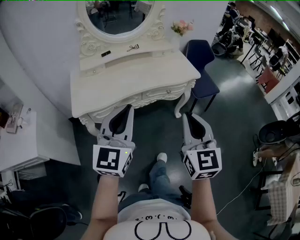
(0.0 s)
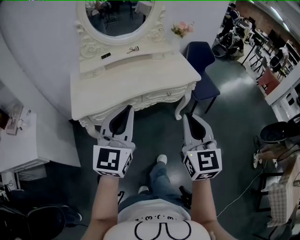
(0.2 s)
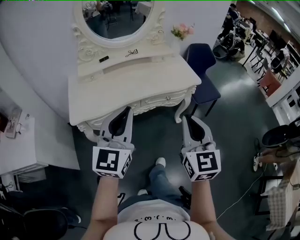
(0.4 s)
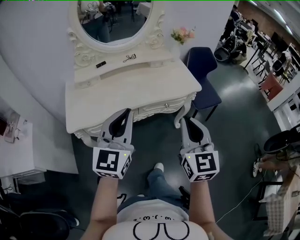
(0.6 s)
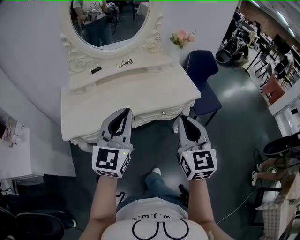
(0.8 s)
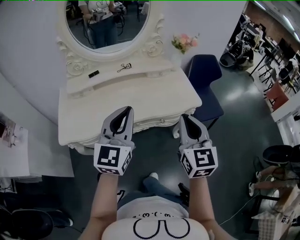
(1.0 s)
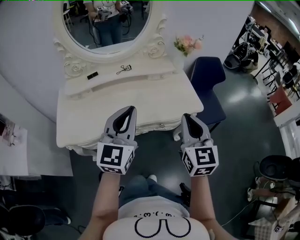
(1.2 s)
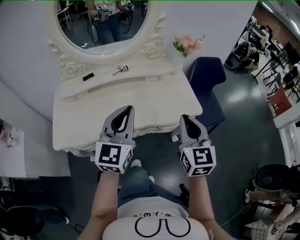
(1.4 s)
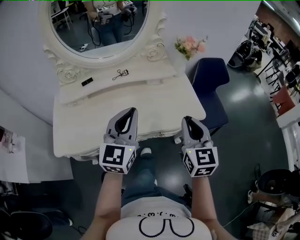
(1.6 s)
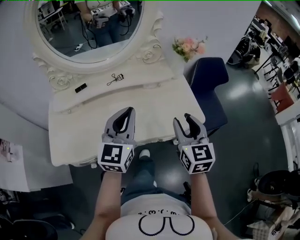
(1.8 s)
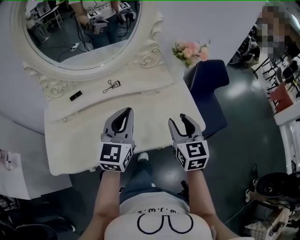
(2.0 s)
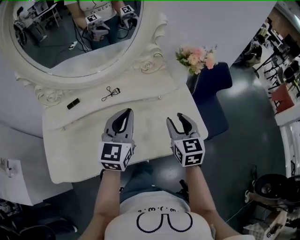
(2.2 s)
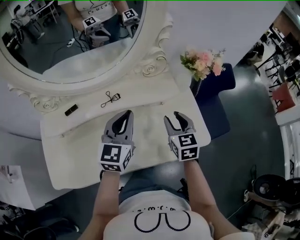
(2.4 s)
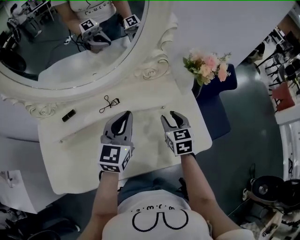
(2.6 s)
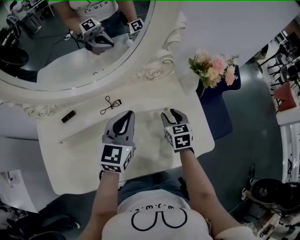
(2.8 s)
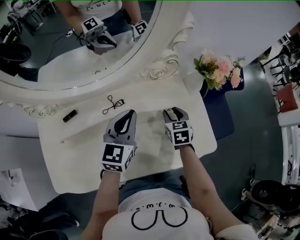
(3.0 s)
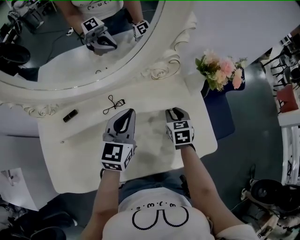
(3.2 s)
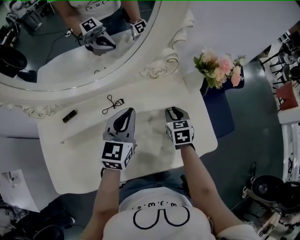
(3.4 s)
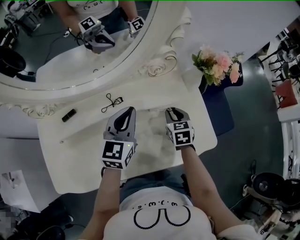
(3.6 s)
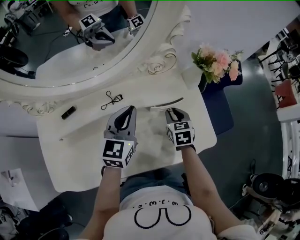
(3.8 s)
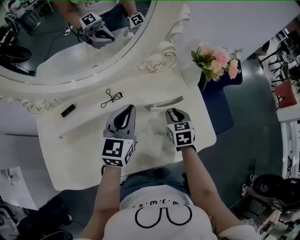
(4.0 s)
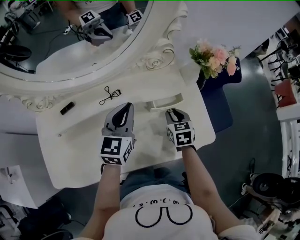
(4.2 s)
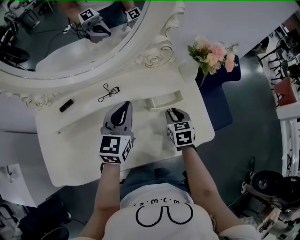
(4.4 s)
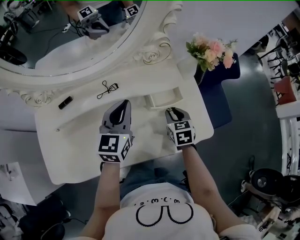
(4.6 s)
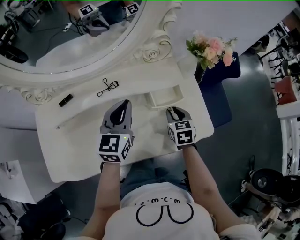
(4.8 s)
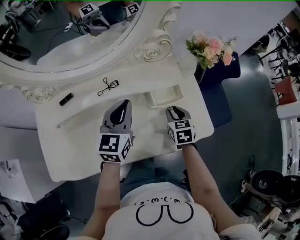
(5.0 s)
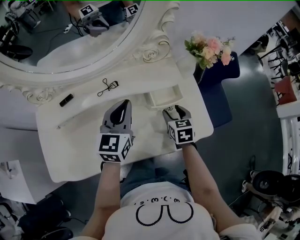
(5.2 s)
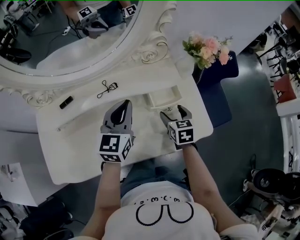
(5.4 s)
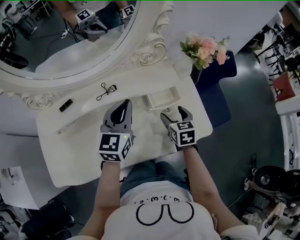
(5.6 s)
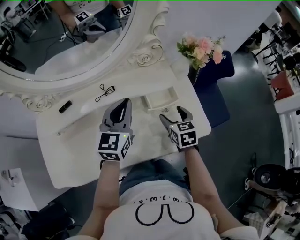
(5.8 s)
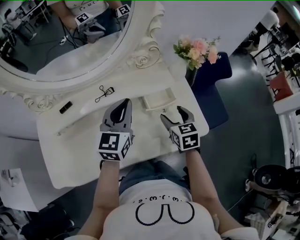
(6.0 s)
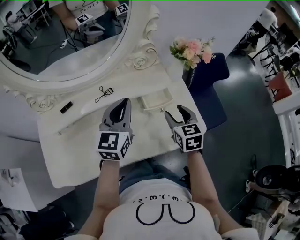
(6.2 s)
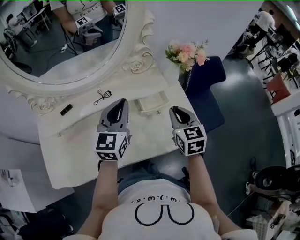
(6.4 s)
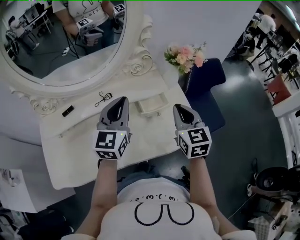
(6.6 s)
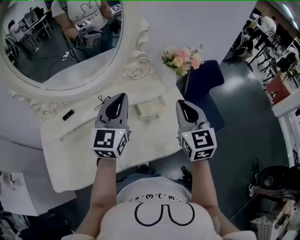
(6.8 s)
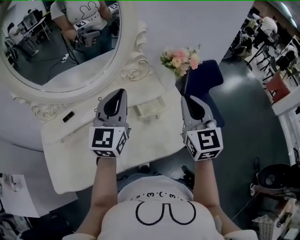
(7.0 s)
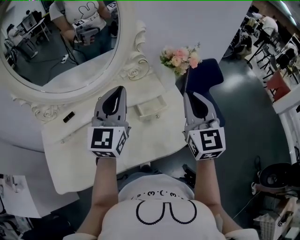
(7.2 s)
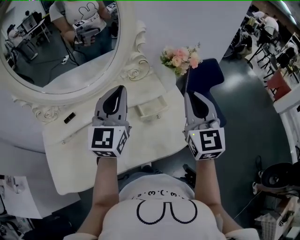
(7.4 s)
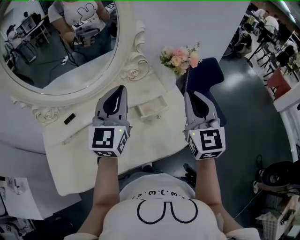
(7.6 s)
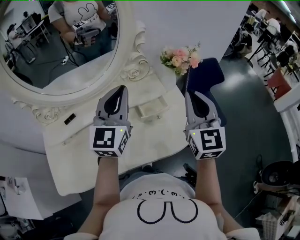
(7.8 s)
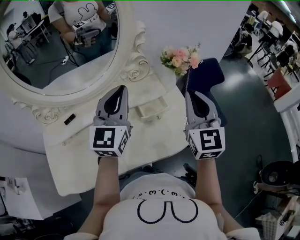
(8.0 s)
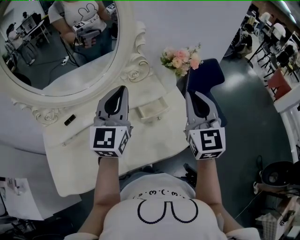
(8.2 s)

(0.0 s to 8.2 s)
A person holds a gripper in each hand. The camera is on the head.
0.0 s - 1.6 s: The two grippers go approximately 35 cm forward.
1.6 s - 3.2 s: The two grippers go about 35 cm forward and downward. The right gripper tilts its fingers roughly 30 degrees downward.
3.2 s - 5.0 s: The left gripper moves roughly 5 cm. Meanwhile the right gripper goes approximately 10 cm backward.
5.0 s - 6.6 s: The right gripper heads upward, covering roughly 20 cm, changes its angle by approximately 30 degrees, and opens, then closes once more. The left gripper is displaced upward by roughly 10 cm.
6.6 s - 8.2 s: The right gripper shifts some 10 cm upward, and swivels roughly 20 degrees. Meanwhile the left gripper travels upward by some 10 cm.

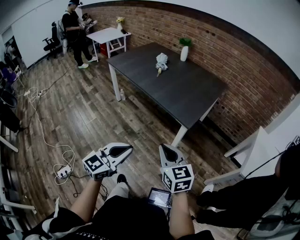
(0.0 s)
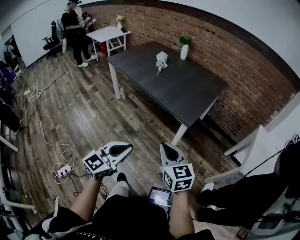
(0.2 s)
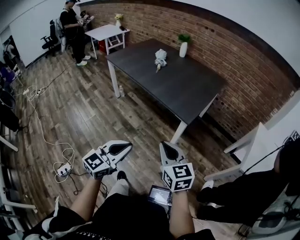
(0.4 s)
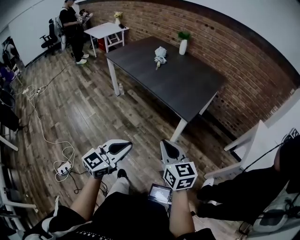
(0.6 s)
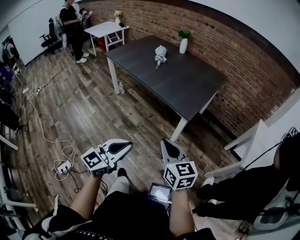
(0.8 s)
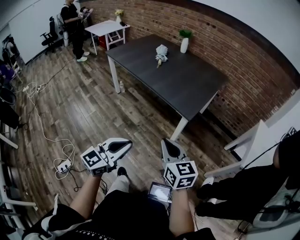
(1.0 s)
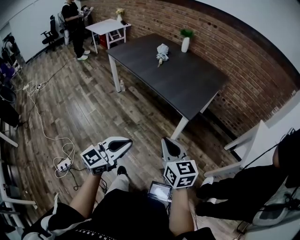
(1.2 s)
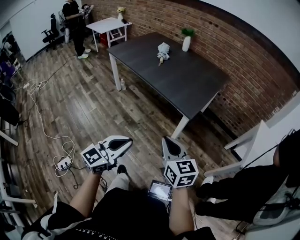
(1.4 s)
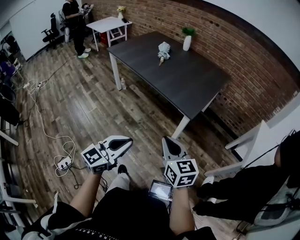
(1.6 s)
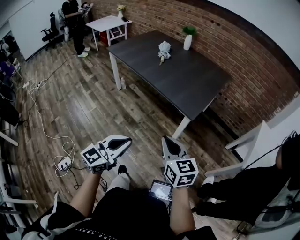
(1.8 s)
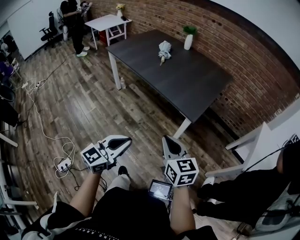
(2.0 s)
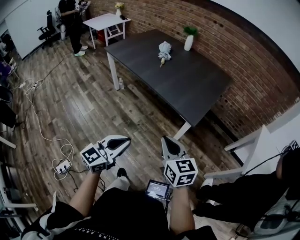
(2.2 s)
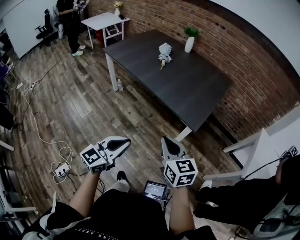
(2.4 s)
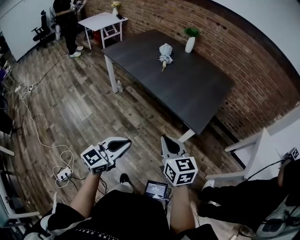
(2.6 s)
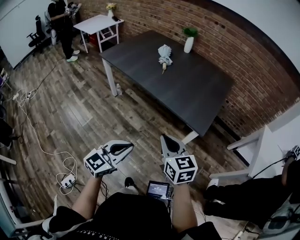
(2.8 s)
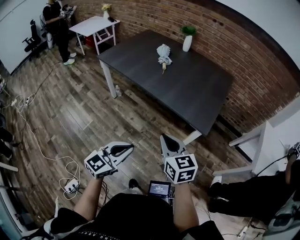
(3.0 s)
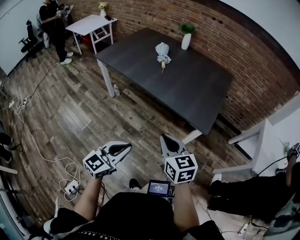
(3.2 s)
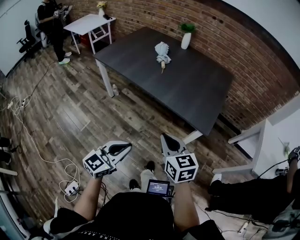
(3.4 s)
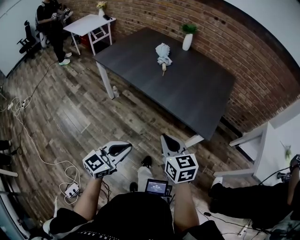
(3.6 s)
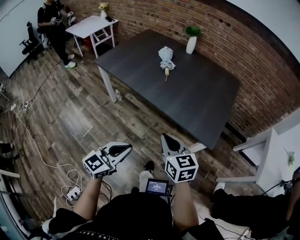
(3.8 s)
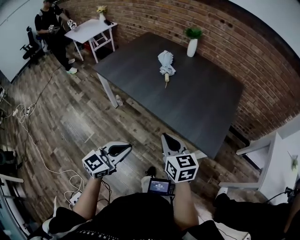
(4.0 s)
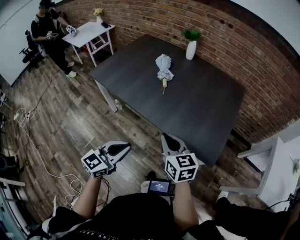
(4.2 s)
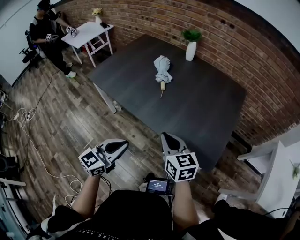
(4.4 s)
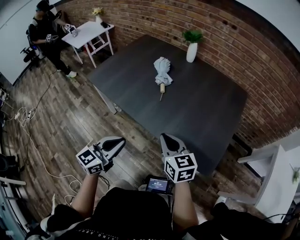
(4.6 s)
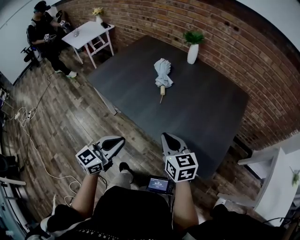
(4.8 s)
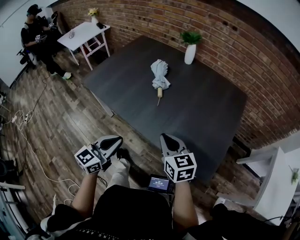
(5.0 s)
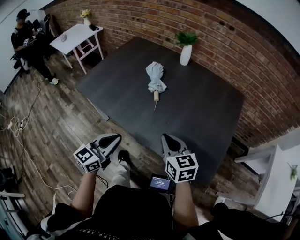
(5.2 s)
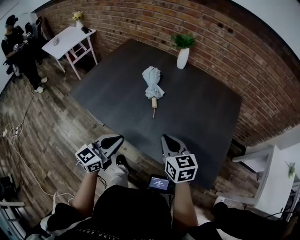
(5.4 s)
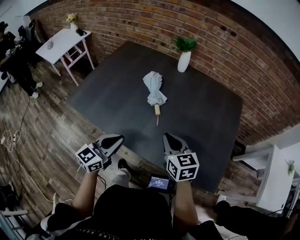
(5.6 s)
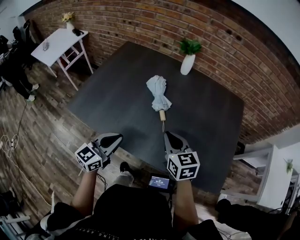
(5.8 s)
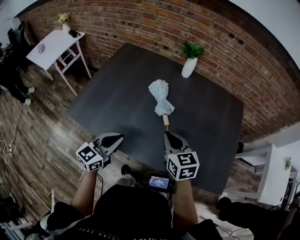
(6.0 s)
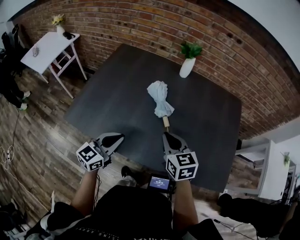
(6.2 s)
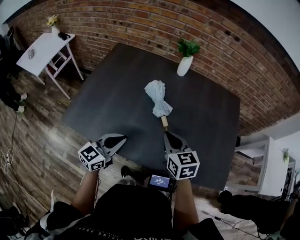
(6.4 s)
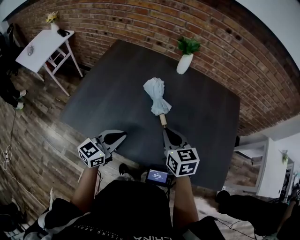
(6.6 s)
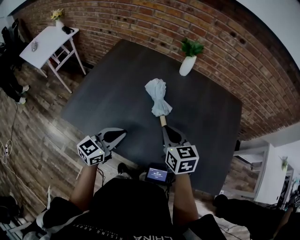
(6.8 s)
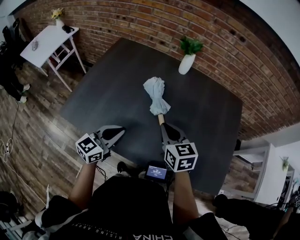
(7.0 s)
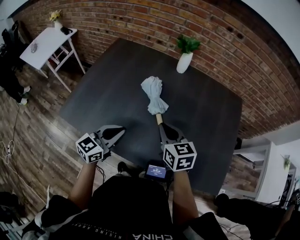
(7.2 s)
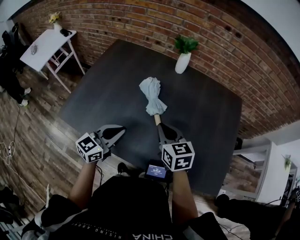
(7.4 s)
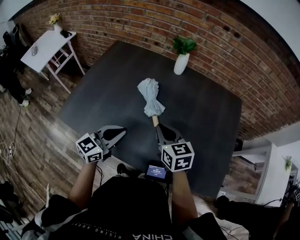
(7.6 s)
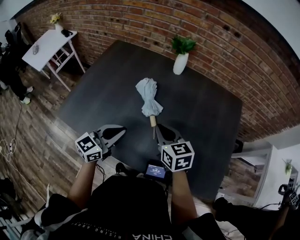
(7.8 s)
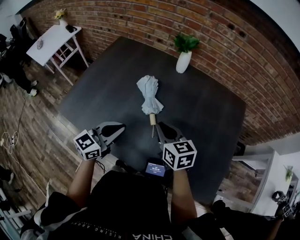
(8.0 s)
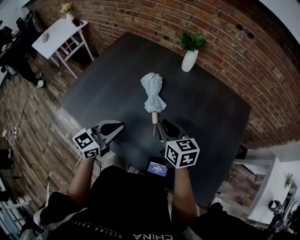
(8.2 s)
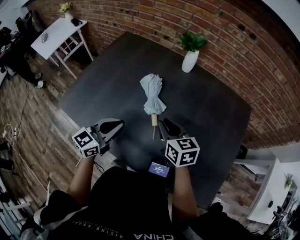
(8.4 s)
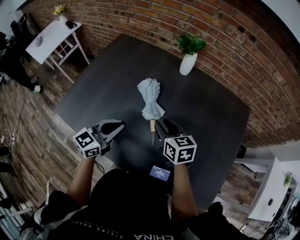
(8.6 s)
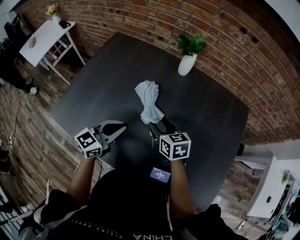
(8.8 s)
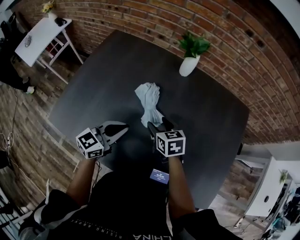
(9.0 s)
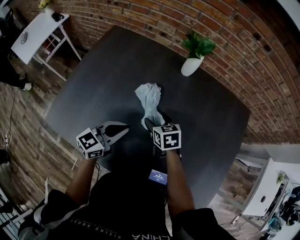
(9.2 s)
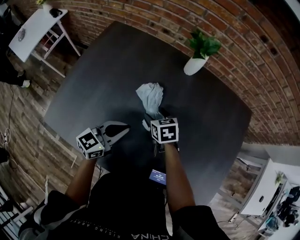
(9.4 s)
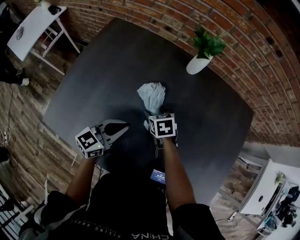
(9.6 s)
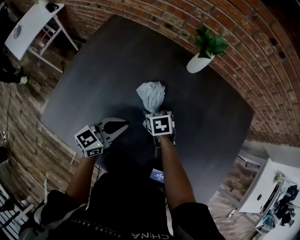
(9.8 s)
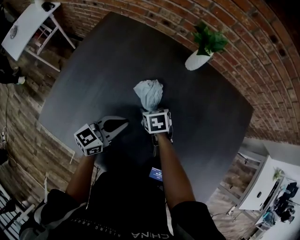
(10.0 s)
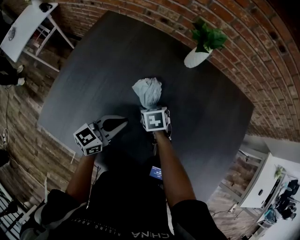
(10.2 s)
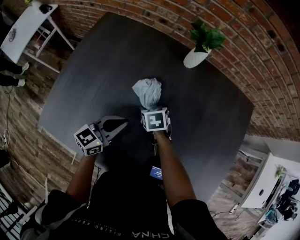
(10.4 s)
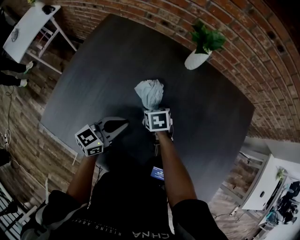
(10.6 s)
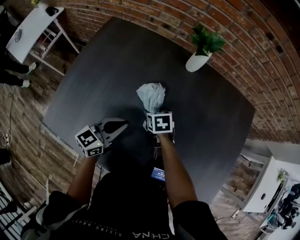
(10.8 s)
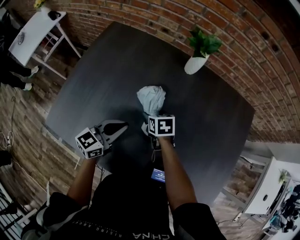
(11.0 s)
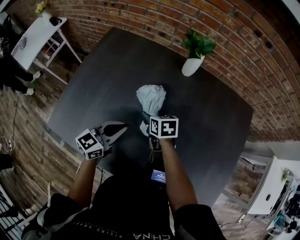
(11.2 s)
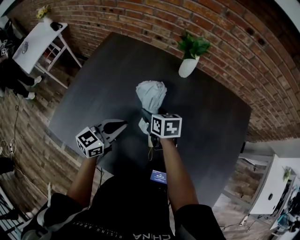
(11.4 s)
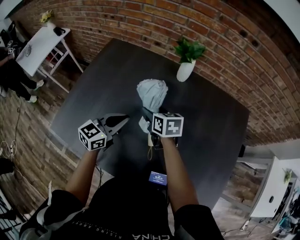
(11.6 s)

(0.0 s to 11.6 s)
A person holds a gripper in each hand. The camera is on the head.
0.0 s - 1.4 s: The grippers move only a little.
1.4 s - 2.8 s: The right gripper is displaced forward and to the left by approximately 20 cm; the left gripper is displaced to the left and forward by approximately 20 cm.
2.8 s - 4.4 s: The two grippers go about 30 cm forward.
4.4 s - 5.8 s: Both grippers move forward and to the left, roughly 30 cm.
5.8 s - 7.2 s: Both grippers travel together forward, some 10 cm.
7.2 s - 8.8 s: The left gripper moves forward, some 10 cm; the right gripper goes about 15 cm forward and downward, and opens up.
8.8 s - 10.2 s: The left gripper goes about 10 cm forward and downward, while the right gripper goes some 20 cm downward, forward and to the left, and swivels about 30 degrees.
10.2 s - 11.6 s: The left gripper is displaced upward by approximately 5 cm, while the right gripper heads upward, covering roughly 15 cm, and changes its angle by about 30 degrees.

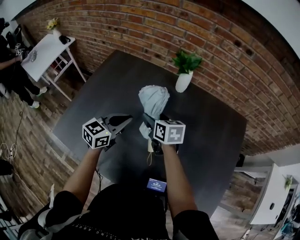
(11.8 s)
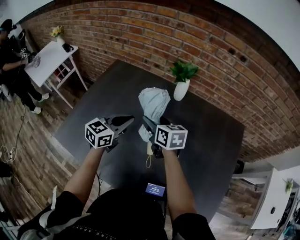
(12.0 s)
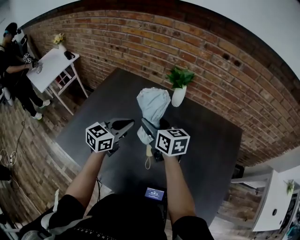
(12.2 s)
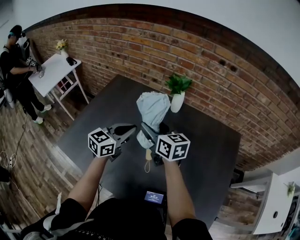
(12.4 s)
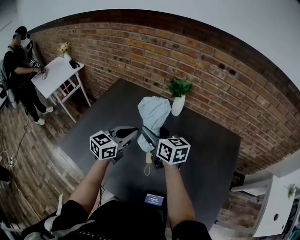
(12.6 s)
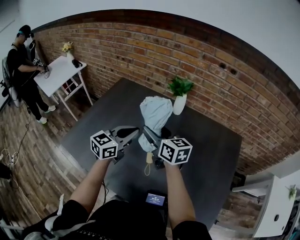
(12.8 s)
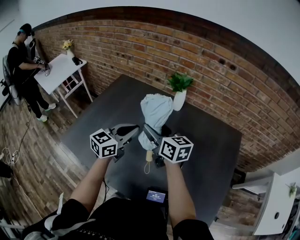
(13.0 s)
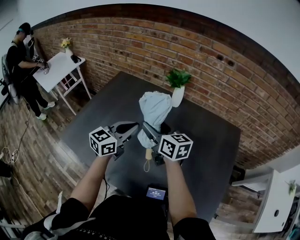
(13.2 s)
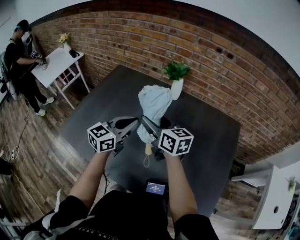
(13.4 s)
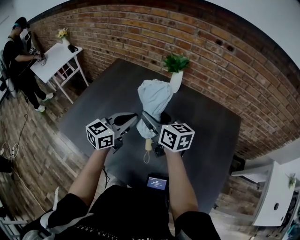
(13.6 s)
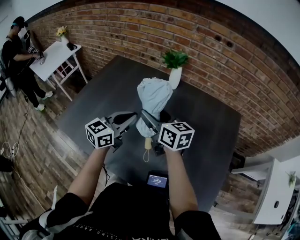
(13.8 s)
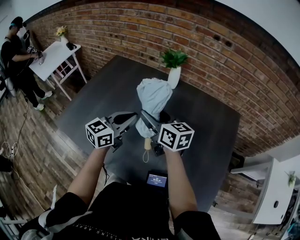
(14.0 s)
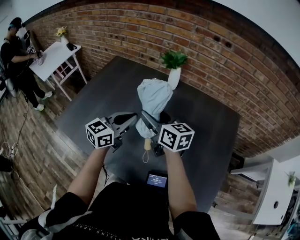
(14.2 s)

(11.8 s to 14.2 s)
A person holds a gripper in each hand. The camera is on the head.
11.8 s - 13.0 s: The left gripper goes some 10 cm upward. The right gripper moves upward and backward, about 15 cm, and rotates approximately 20 degrees.
13.0 s - 14.2 s: The right gripper shifts by about 5 cm; the left gripper ends up about 5 cm from where it was.

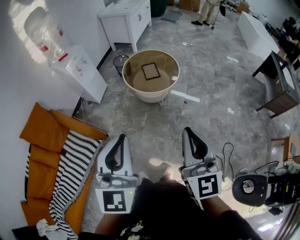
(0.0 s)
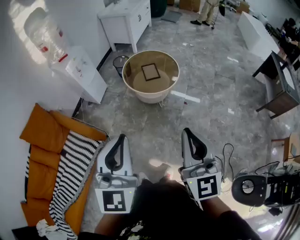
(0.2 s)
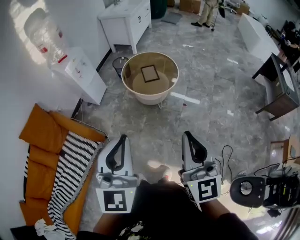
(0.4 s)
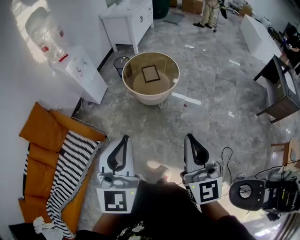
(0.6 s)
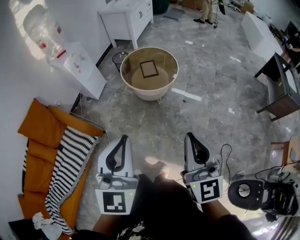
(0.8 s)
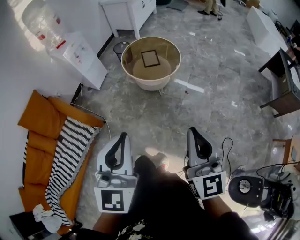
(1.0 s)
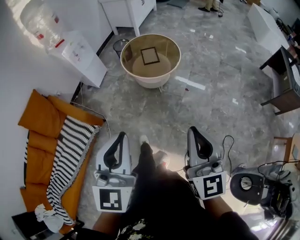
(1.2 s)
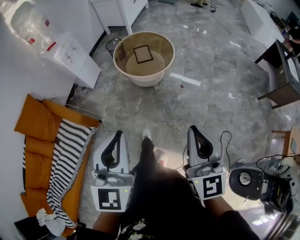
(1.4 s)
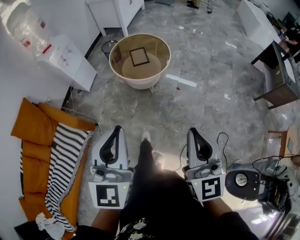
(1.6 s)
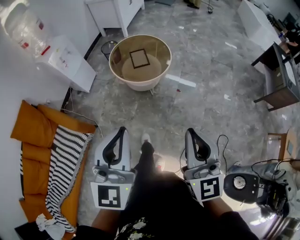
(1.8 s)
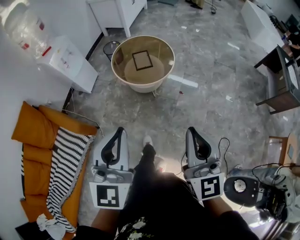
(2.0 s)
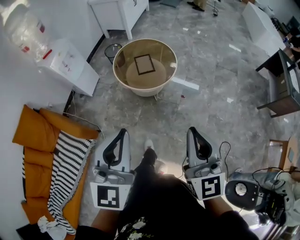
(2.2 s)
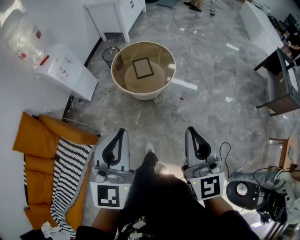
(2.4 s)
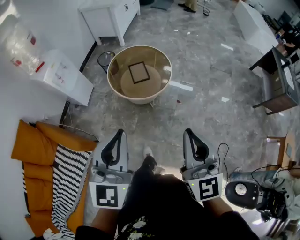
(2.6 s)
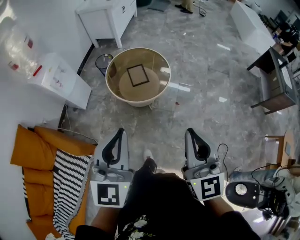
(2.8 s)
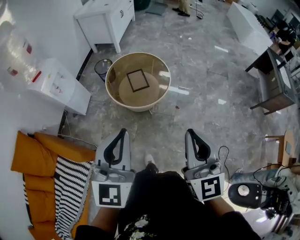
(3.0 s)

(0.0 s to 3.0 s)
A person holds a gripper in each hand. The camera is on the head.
0.0 s - 1.6 s: The right gripper goes approximately 10 cm to the right and downward; the left gripper moves to the right, downward and forward, approximately 10 cm.
1.6 s - 3.0 s: Both grippers move forward, some 20 cm.
